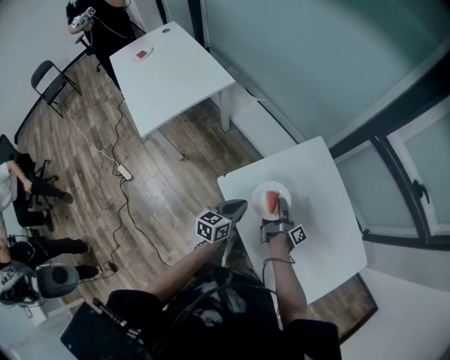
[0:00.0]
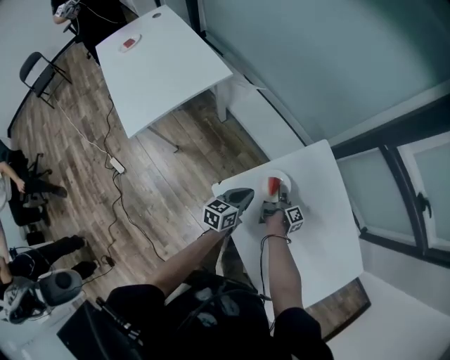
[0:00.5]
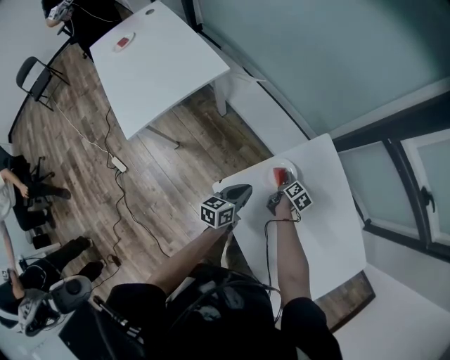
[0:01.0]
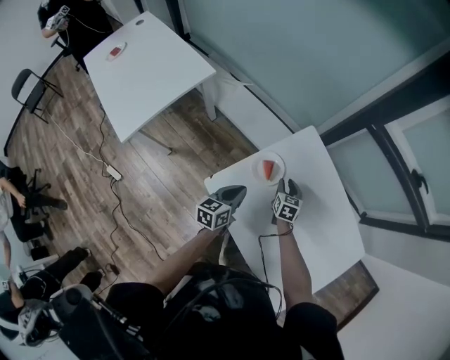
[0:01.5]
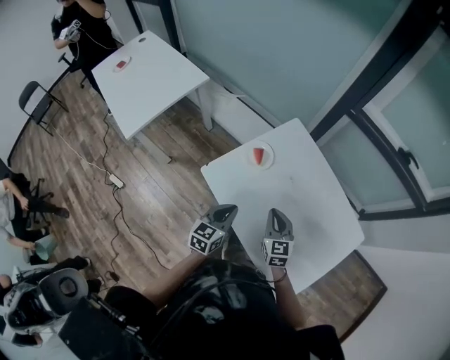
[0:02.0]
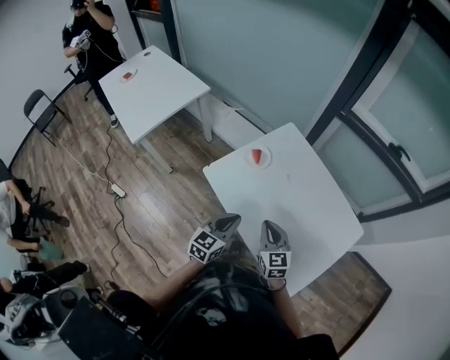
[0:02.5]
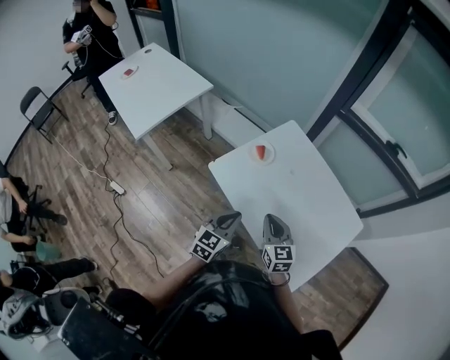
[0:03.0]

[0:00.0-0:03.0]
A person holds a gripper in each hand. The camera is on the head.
0:00.0 to 0:01.5: The left gripper moves some 10 cm.
0:01.5 to 0:03.0: The left gripper shifts by approximately 30 cm, and swivels approximately 30 degrees.

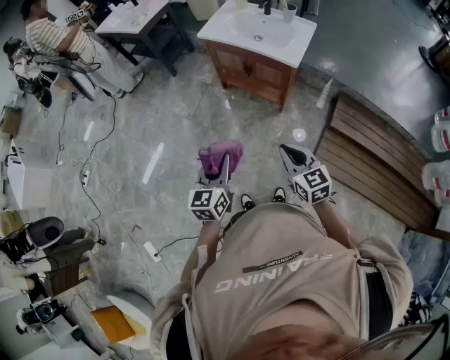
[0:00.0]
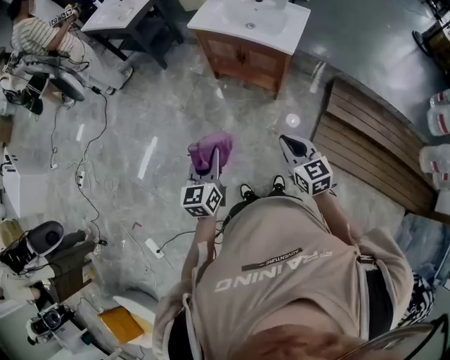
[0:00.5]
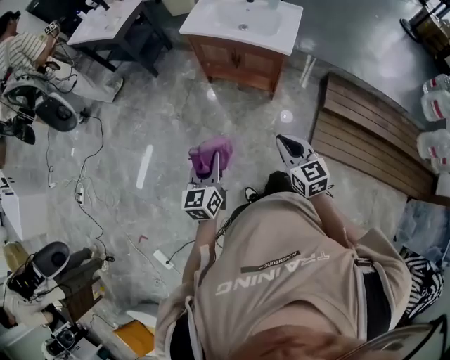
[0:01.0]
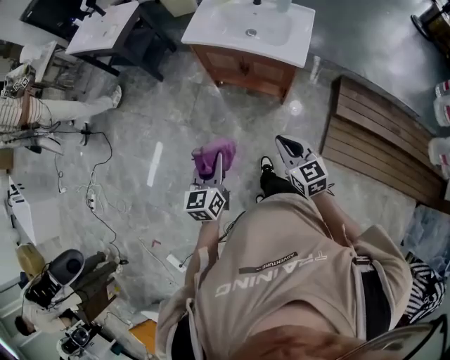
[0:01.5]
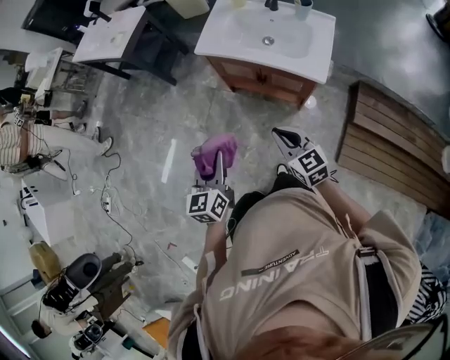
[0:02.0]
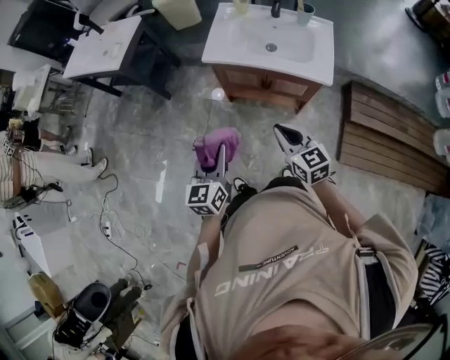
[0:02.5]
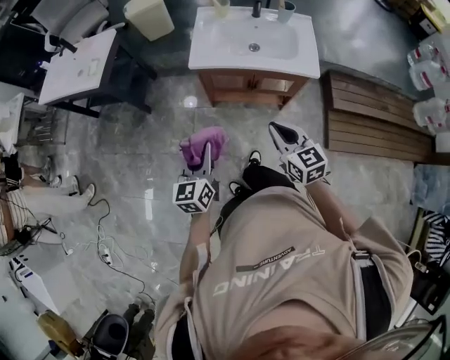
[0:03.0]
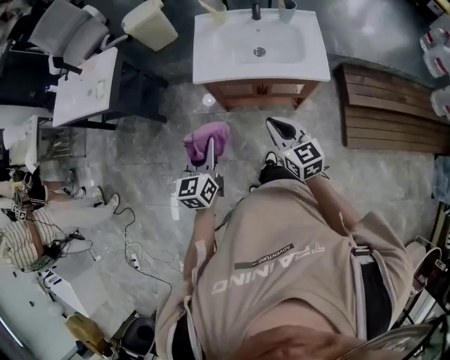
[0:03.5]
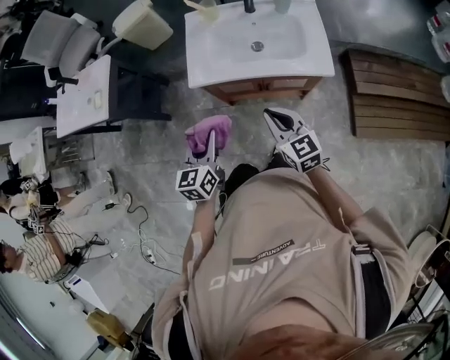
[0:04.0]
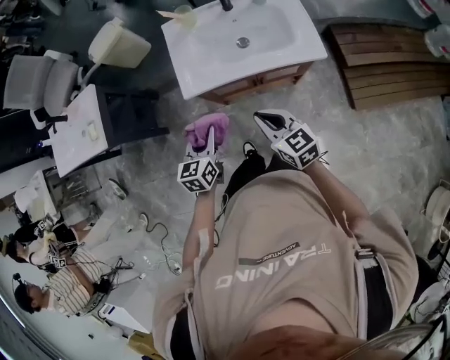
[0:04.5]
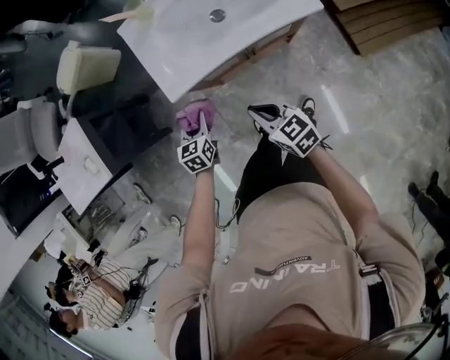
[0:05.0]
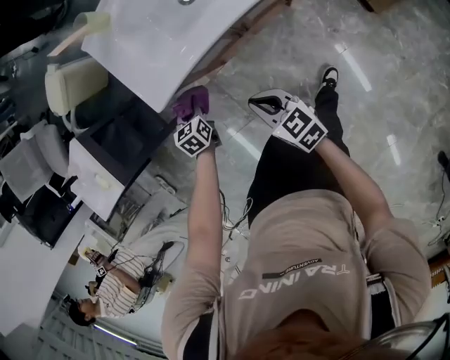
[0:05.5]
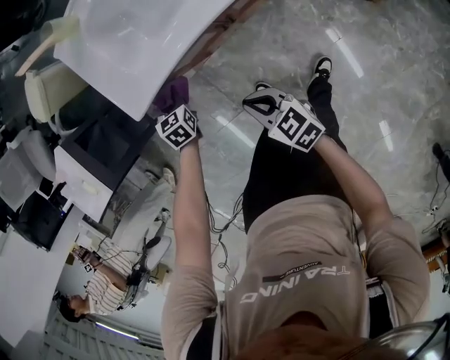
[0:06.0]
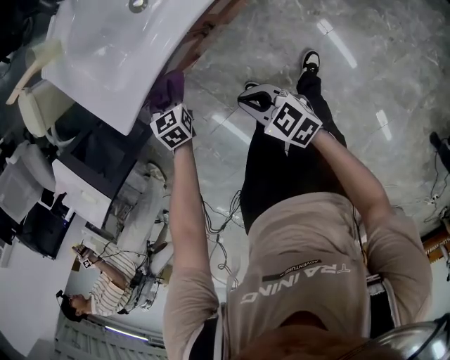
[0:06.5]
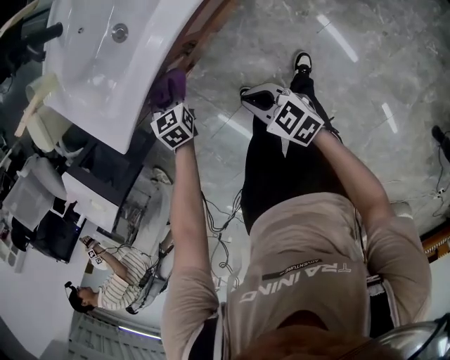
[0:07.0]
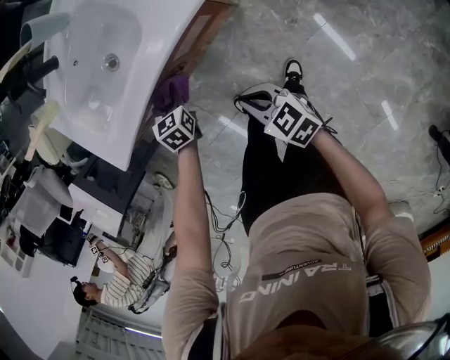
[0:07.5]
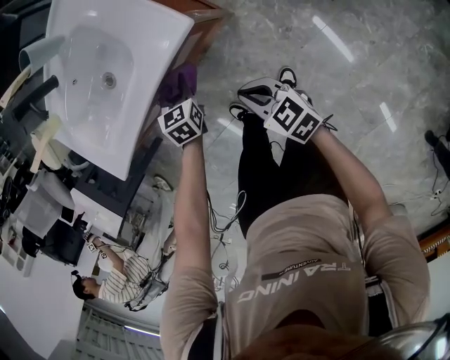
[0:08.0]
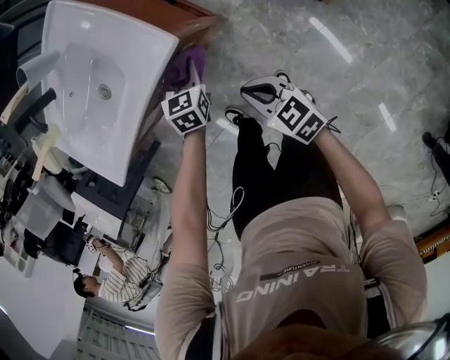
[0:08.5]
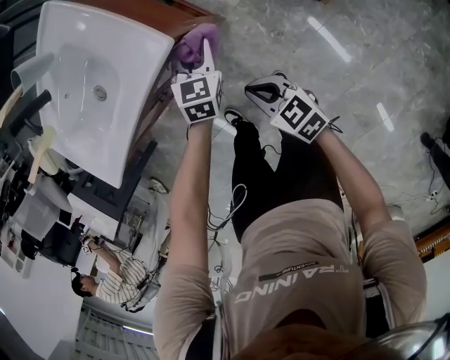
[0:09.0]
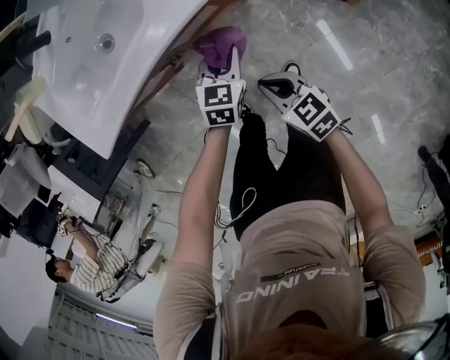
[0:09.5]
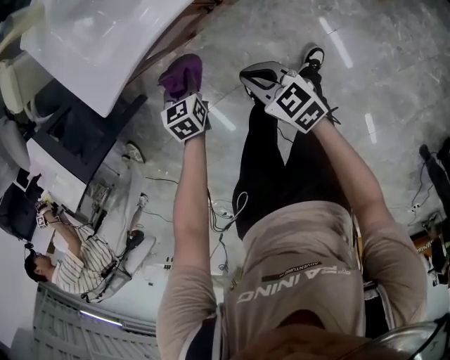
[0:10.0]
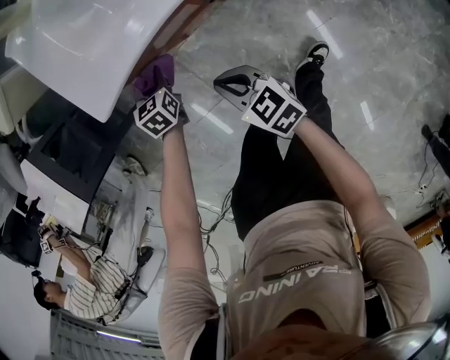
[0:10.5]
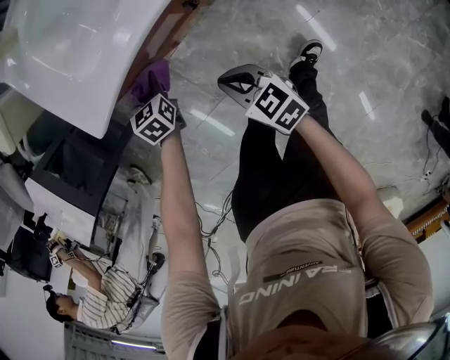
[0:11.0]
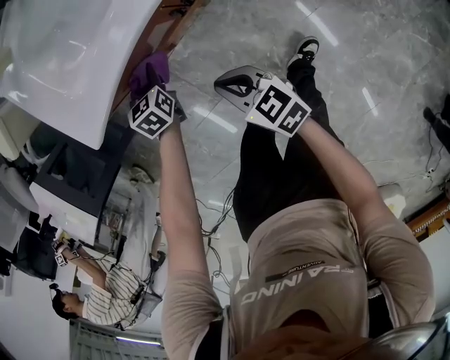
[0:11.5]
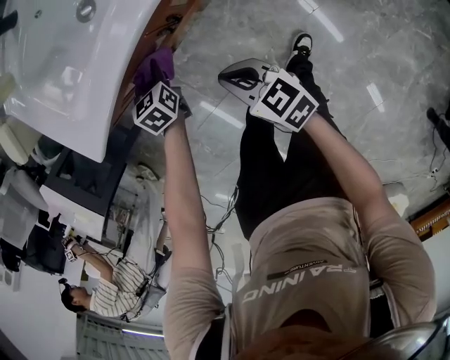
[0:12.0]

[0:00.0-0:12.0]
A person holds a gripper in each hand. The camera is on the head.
0:00.0 to 0:02.0: The two grippers go approximately 30 cm forward.
0:02.0 to 0:04.0: The left gripper shifts by about 25 cm, and changes its angle by approximately 30 degrees. Meanwhile the right gripper moves roughly 20 cm, and turns by roughly 30 degrees.
0:04.0 to 0:06.0: The left gripper moves downward and forward, about 40 cm, and rotates about 40 degrees. Meanwhile the right gripper goes approximately 25 cm downward, and changes its angle by roughly 20 degrees.
0:06.0 to 0:08.0: Both grippers travel together to the right, approximately 30 cm.
0:08.0 to 0:10.0: The grippers both shift to the left by roughly 25 cm.
0:10.0 to 0:12.0: The right gripper goes to the left and returns, roughly 10 cm each way, while the left gripper is displaced to the right and forward by approximately 10 cm.

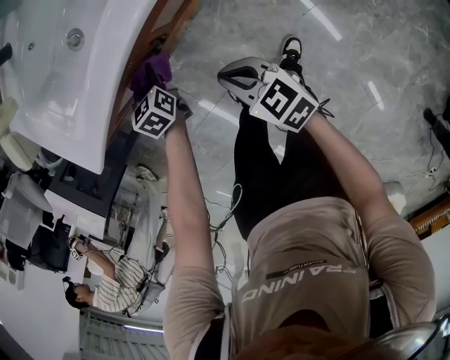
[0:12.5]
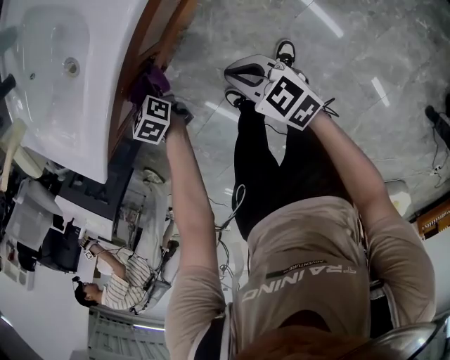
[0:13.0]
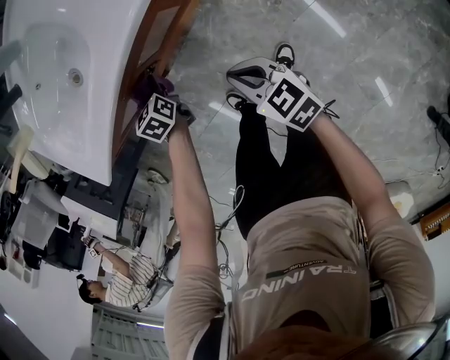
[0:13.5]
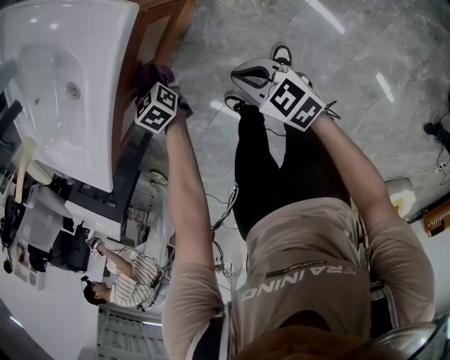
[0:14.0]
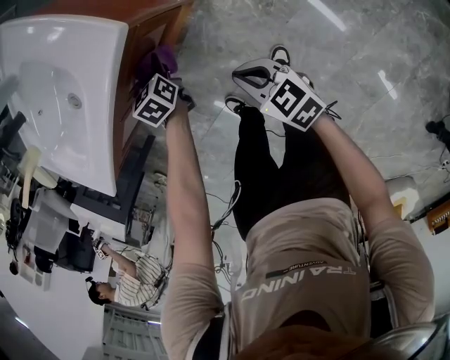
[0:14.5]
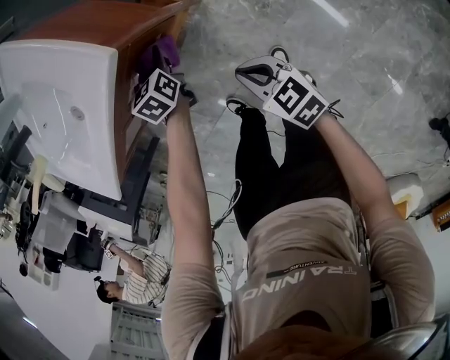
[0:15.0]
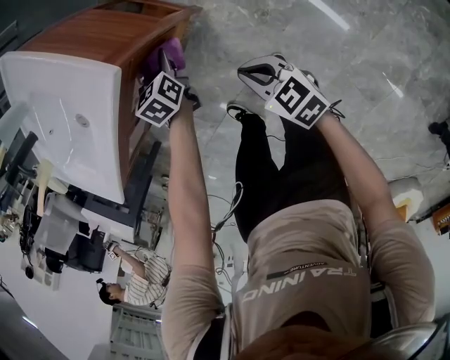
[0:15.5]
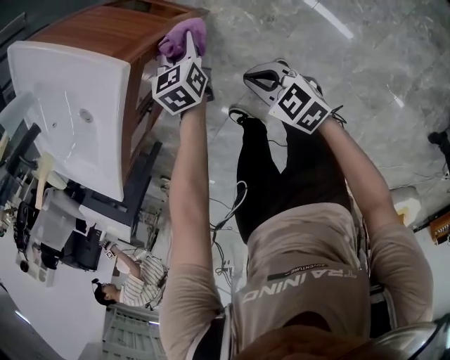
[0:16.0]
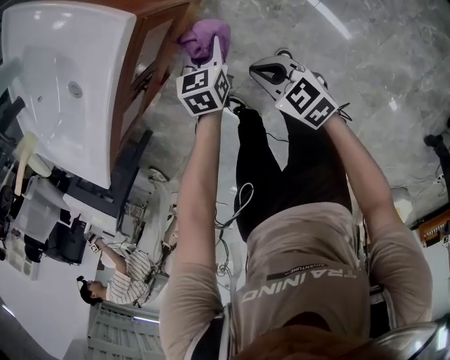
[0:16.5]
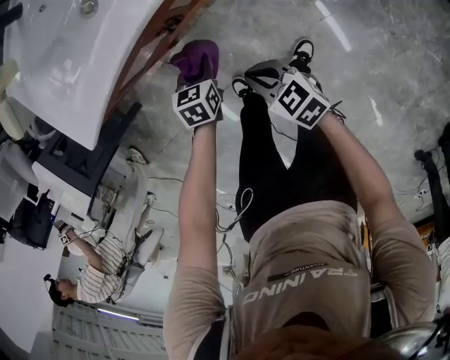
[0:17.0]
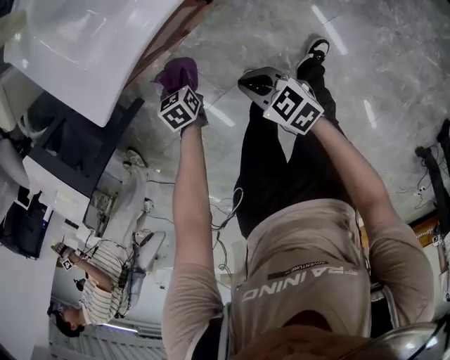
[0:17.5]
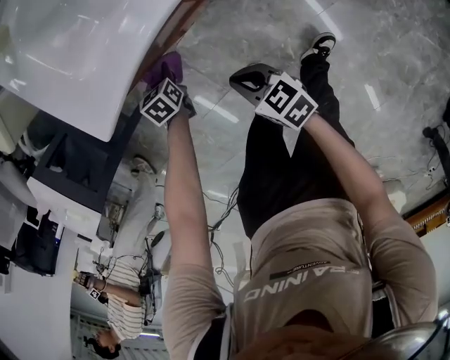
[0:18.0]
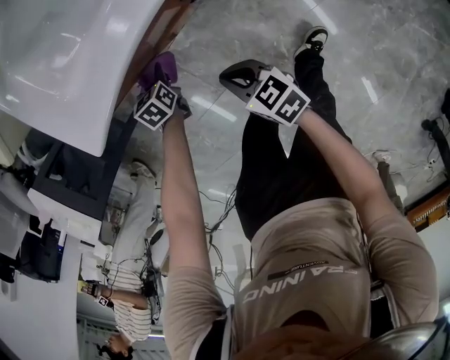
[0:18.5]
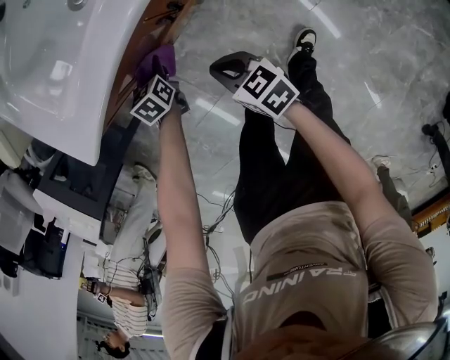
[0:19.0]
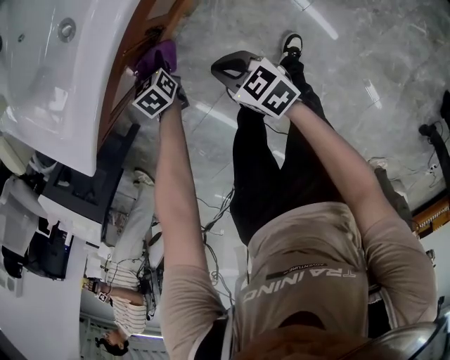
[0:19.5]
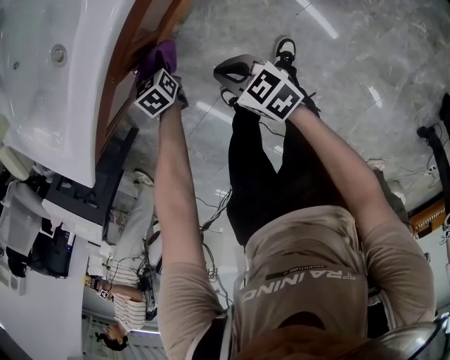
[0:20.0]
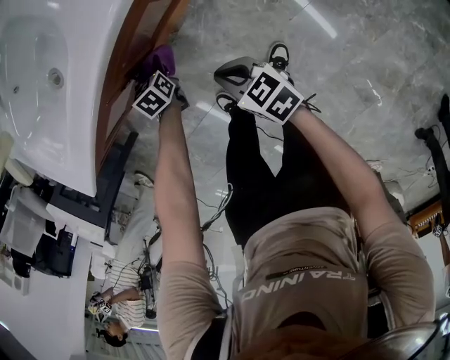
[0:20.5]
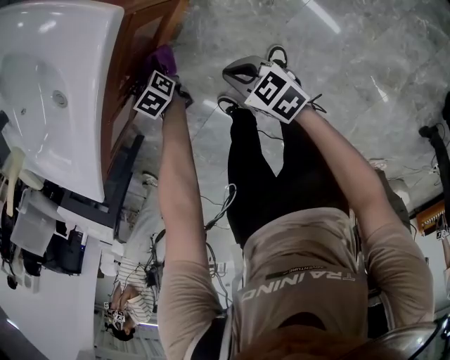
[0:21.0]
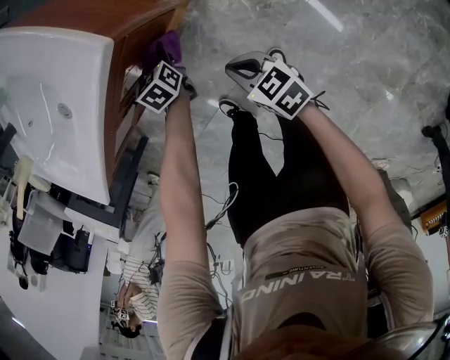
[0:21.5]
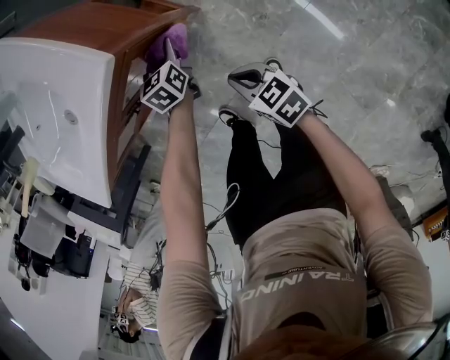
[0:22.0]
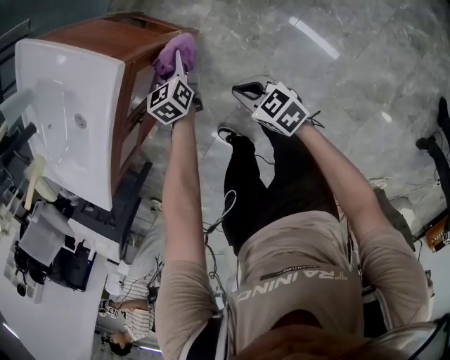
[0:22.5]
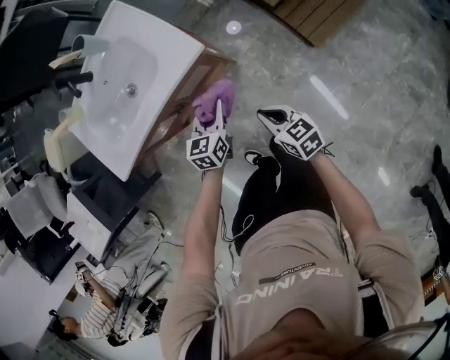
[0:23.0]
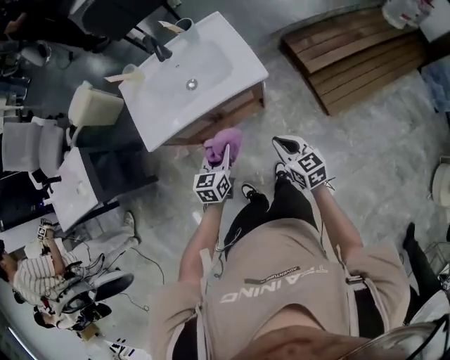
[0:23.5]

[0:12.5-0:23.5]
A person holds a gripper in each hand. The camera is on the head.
0:12.5 to 0:14.5: Both grippers move to the right, about 20 cm.
0:14.5 to 0:16.0: The right gripper travels to the right by approximately 5 cm. The left gripper travels to the right by about 20 cm.
0:16.0 to 0:18.0: The two grippers travel together, to the left, approximately 50 cm. The left gripper turns by some 30 degrees.
0:18.0 to 0:20.0: Both grippers travel together to the right, about 25 cm.
0:20.0 to 0:21.5: Both grippers move to the right, roughly 15 cm.
0:21.5 to 0:23.5: The left gripper heads upward and backward, covering some 40 cm, and changes its angle by approximately 30 degrees; the right gripper moves upward, about 35 cm, and rotates approximately 20 degrees.

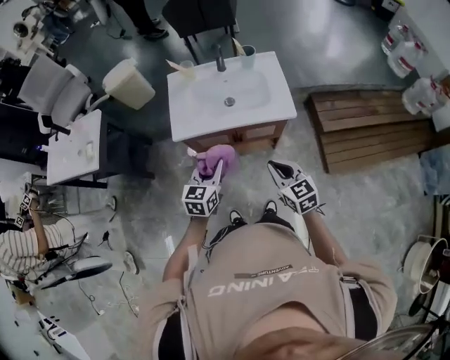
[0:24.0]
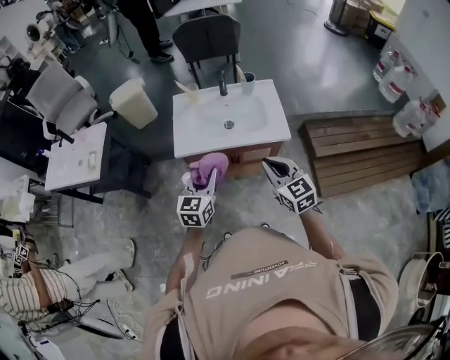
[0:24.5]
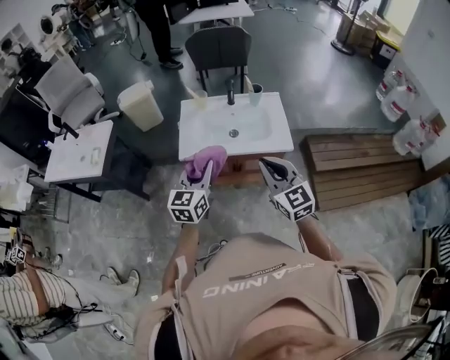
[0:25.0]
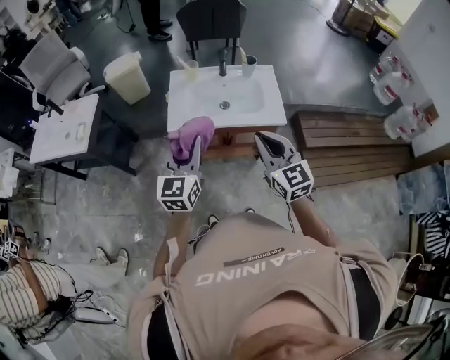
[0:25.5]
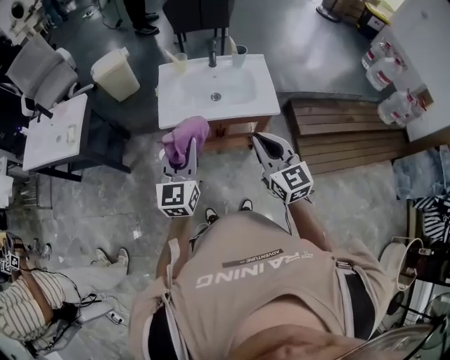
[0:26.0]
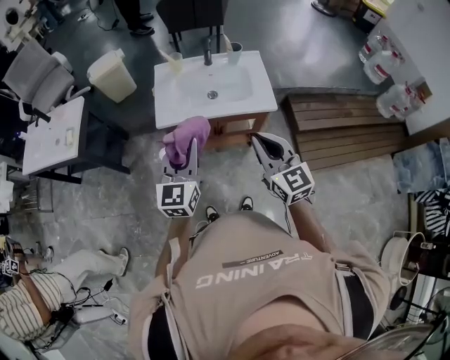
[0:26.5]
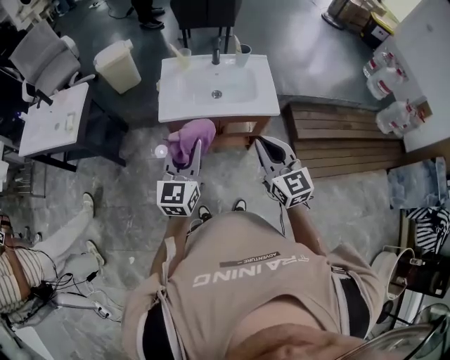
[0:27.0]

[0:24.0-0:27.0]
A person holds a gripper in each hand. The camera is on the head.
0:24.0 to 0:25.5: Both grippers travel together upward, roughly 15 cm. The right gripper changes its angle by about 20 degrees. Meanwhile the left gripper changes its angle by approximately 20 degrees.
0:25.5 to 0:27.0: The grippers make only small movements.
